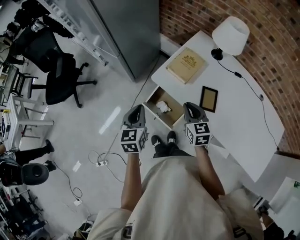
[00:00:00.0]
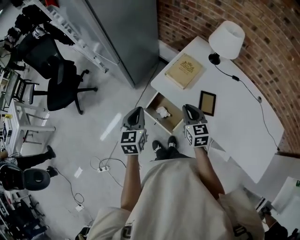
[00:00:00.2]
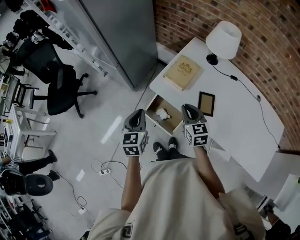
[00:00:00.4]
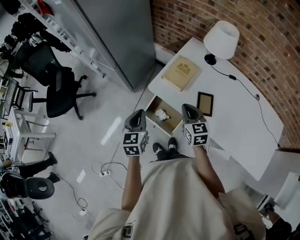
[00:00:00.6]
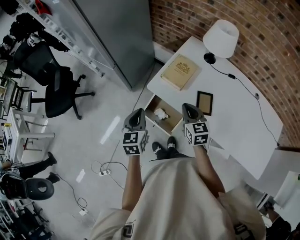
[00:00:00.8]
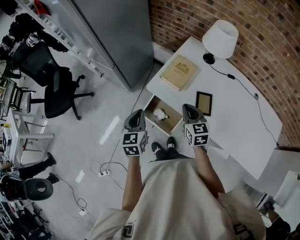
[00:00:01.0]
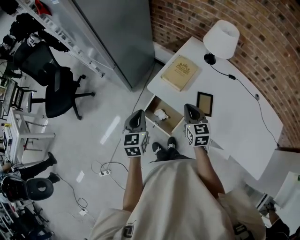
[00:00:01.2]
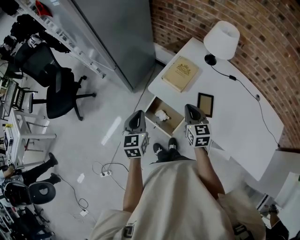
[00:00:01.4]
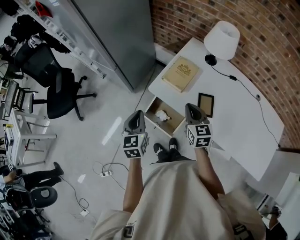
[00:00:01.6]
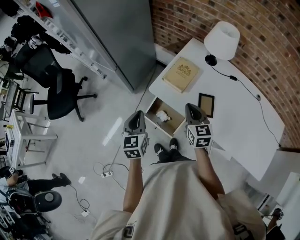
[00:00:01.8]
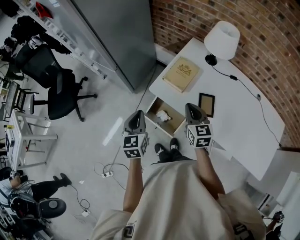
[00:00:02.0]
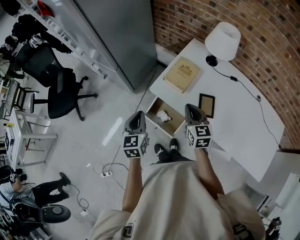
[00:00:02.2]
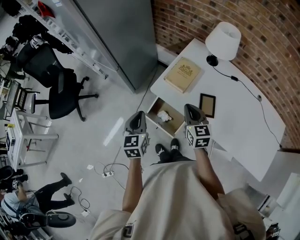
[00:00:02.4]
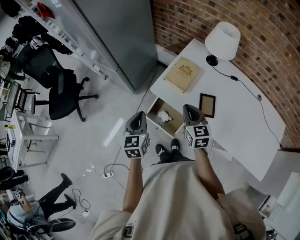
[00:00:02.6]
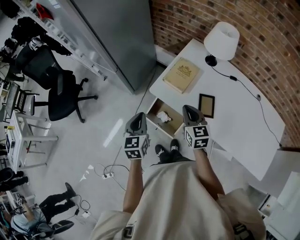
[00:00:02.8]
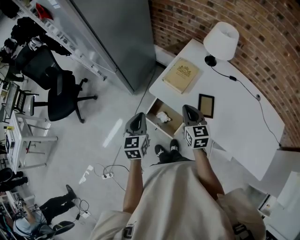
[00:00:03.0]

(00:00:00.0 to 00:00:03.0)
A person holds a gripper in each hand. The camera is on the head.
00:00:00.0 - 00:00:01.6: The right gripper moves approximately 5 cm.
00:00:01.6 - 00:00:03.0: There are only small adjustments of the grippers.

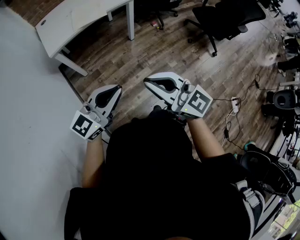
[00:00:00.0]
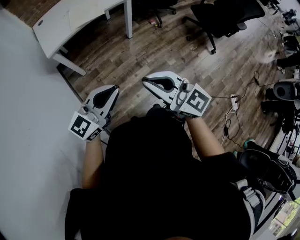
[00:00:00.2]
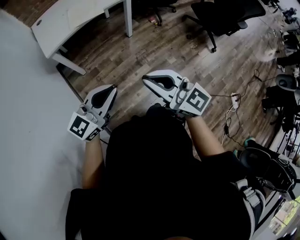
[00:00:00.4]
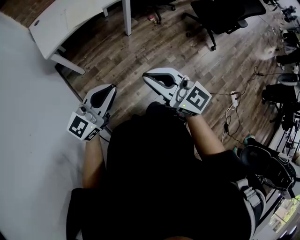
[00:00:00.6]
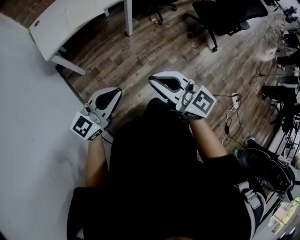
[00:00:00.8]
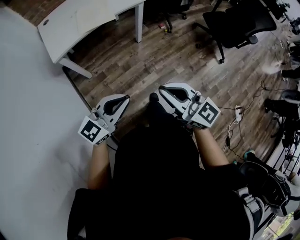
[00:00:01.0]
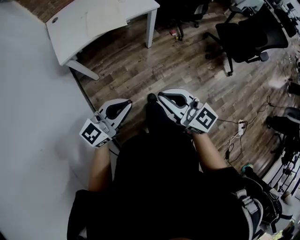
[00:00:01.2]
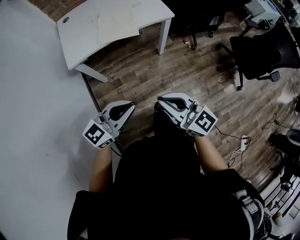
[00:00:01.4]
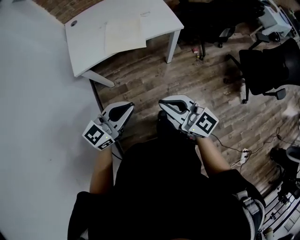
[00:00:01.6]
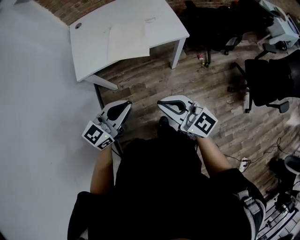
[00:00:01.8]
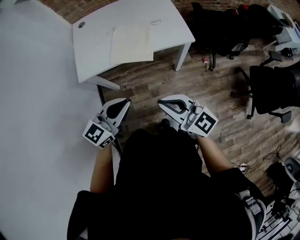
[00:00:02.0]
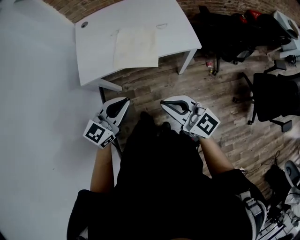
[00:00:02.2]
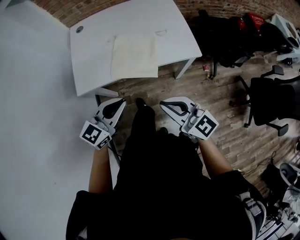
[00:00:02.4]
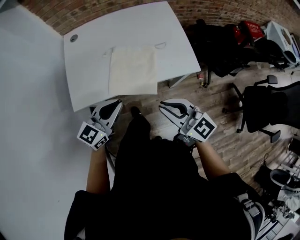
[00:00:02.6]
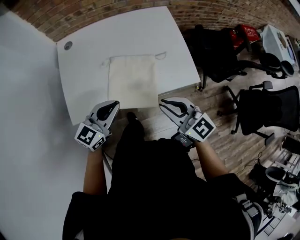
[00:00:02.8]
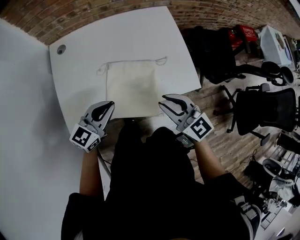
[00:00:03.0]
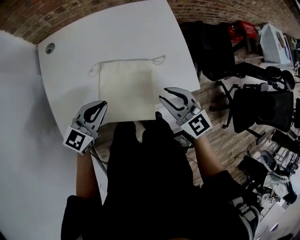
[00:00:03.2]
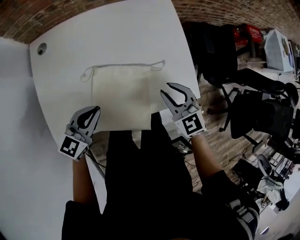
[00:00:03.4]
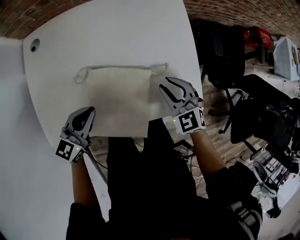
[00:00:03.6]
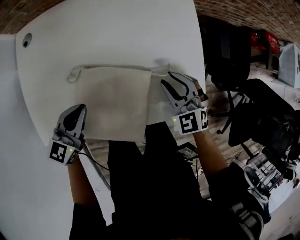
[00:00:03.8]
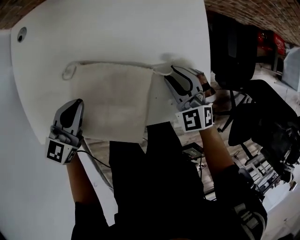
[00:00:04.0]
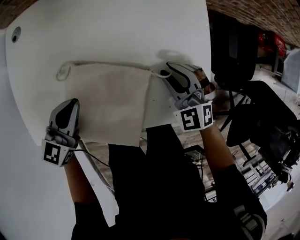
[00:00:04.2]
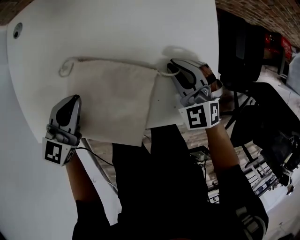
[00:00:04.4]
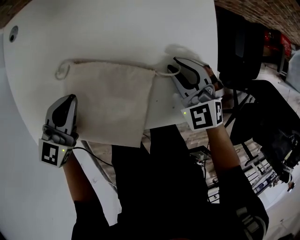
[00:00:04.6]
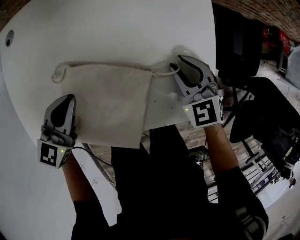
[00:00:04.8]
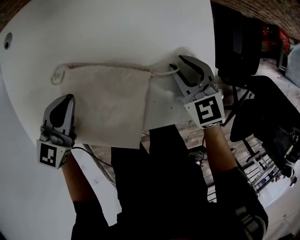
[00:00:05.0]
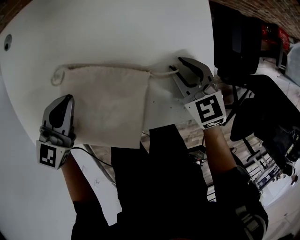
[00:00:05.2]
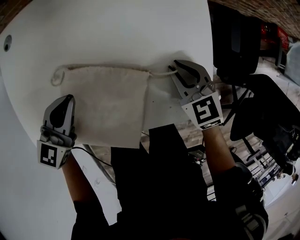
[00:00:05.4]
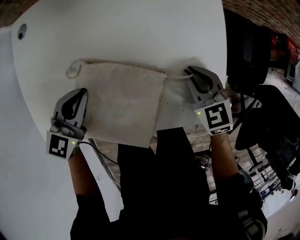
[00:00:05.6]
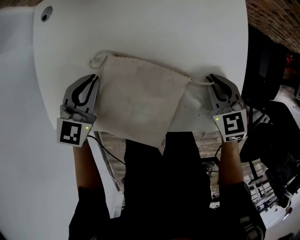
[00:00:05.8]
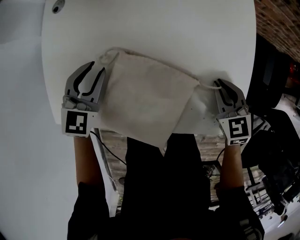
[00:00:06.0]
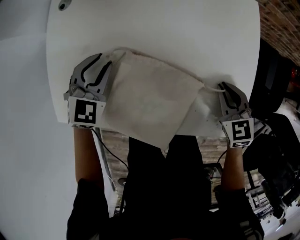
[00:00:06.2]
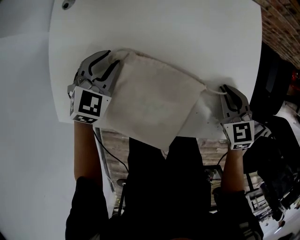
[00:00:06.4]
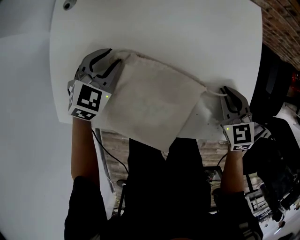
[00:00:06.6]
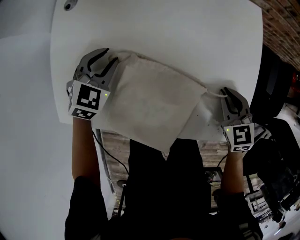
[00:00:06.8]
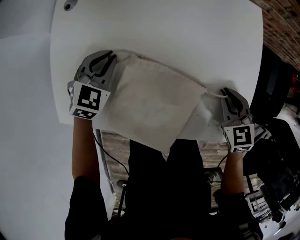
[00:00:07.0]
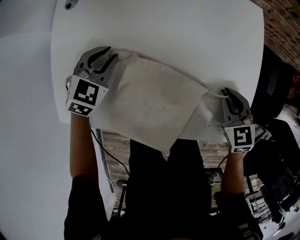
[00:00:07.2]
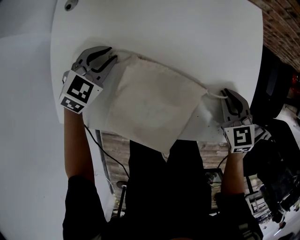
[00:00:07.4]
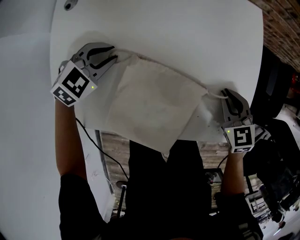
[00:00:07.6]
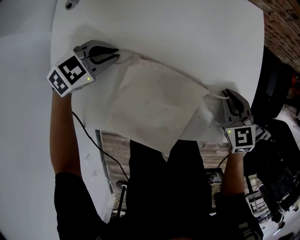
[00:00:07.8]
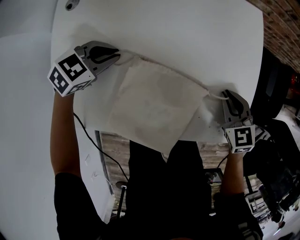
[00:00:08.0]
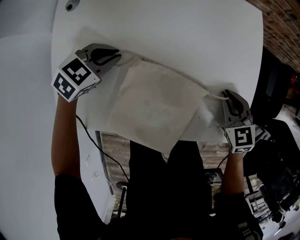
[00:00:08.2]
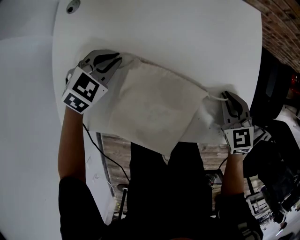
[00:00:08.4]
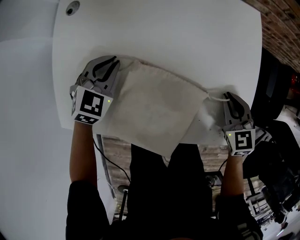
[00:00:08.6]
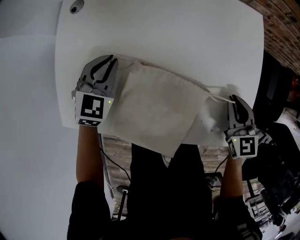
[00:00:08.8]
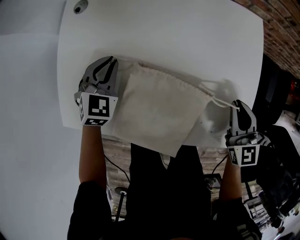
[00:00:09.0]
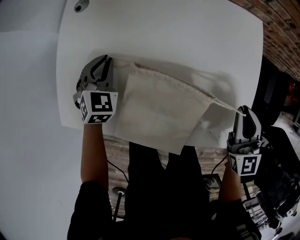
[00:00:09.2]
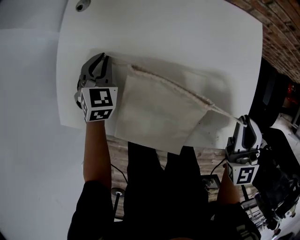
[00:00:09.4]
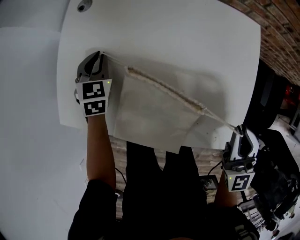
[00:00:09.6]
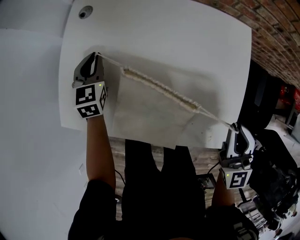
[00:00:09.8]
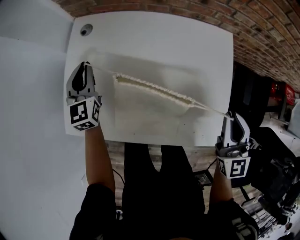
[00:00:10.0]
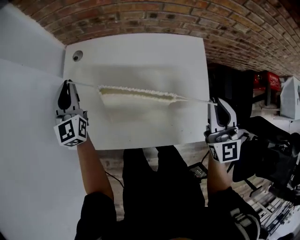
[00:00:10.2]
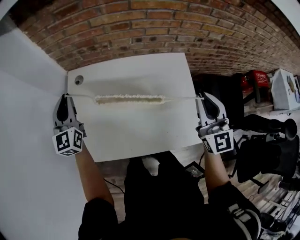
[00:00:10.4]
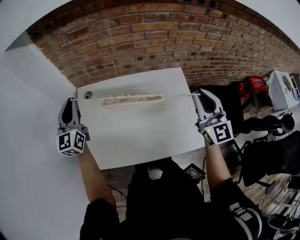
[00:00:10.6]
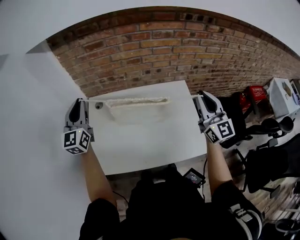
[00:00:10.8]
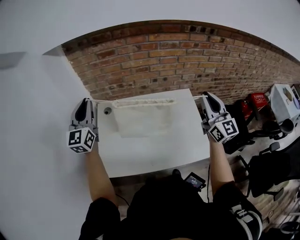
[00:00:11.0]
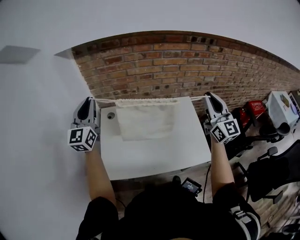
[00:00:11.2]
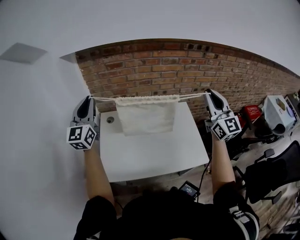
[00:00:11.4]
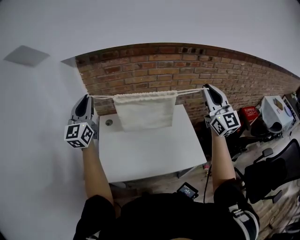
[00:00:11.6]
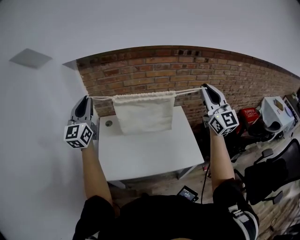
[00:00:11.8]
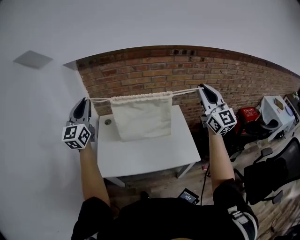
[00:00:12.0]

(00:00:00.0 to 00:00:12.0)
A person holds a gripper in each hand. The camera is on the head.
00:00:00.0 - 00:00:01.6: Both grippers move forward, about 30 cm.
00:00:01.6 - 00:00:03.0: The pair of grippers is taken forward, approximately 40 cm. The right gripper swivels roughly 20 degrees.
00:00:03.0 - 00:00:04.4: The right gripper travels forward and downward by approximately 30 cm, and turns by about 40 degrees. Meanwhile the left gripper heads downward and forward, covering some 20 cm, and rotates roughly 20 degrees.
00:00:04.4 - 00:00:06.0: The left gripper travels to the left by some 5 cm, rotates some 30 degrees, and opens its fingers; the right gripper swivels roughly 30 degrees.
00:00:06.0 - 00:00:07.6: The left gripper shifts by approximately 5 cm, and turns by roughly 30 degrees.
00:00:07.6 - 00:00:09.0: The right gripper is displaced upward by roughly 5 cm, and swivels some 20 degrees. The left gripper rotates approximately 40 degrees.
00:00:09.0 - 00:00:10.4: Both grippers move upward, some 30 cm. The left gripper tips its fingers upward by about 40 degrees. The right gripper swivels approximately 30 degrees.
00:00:10.4 - 00:00:12.0: The grippers both shift upward and backward by approximately 30 cm. The right gripper swivels about 20 degrees. The left gripper rotates some 20 degrees.

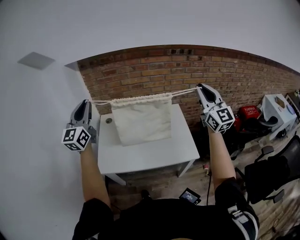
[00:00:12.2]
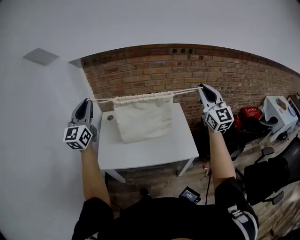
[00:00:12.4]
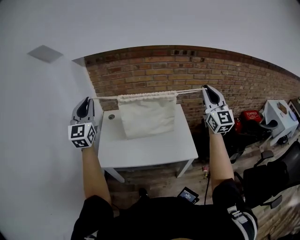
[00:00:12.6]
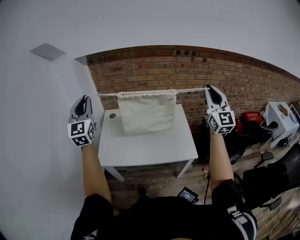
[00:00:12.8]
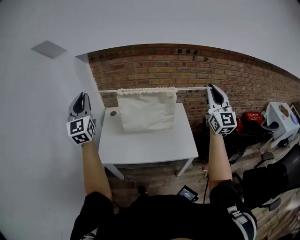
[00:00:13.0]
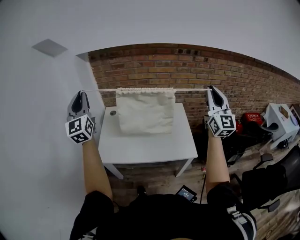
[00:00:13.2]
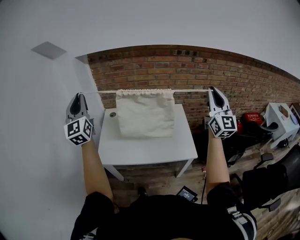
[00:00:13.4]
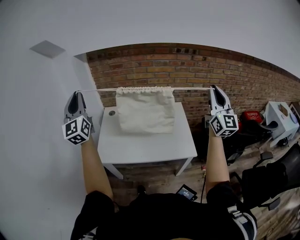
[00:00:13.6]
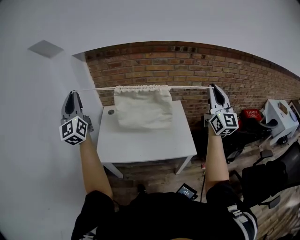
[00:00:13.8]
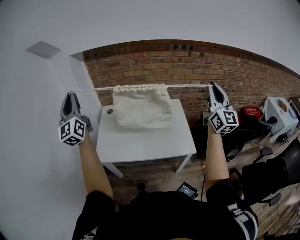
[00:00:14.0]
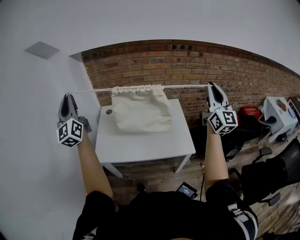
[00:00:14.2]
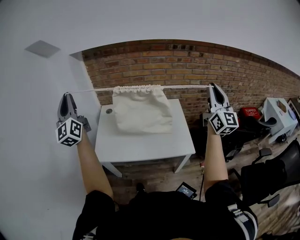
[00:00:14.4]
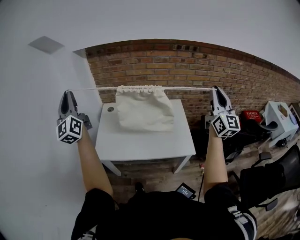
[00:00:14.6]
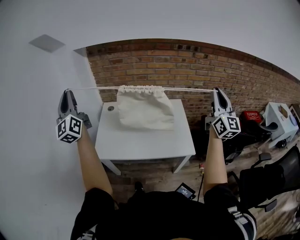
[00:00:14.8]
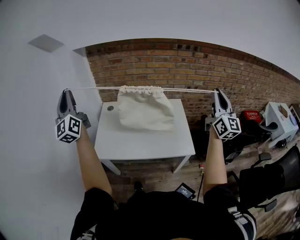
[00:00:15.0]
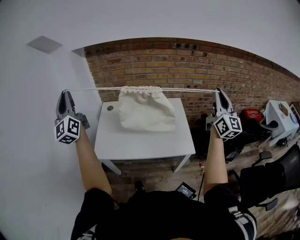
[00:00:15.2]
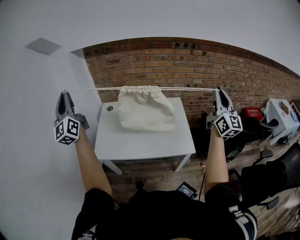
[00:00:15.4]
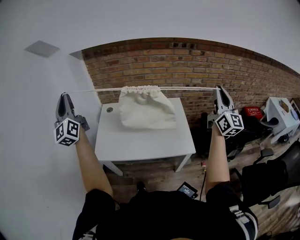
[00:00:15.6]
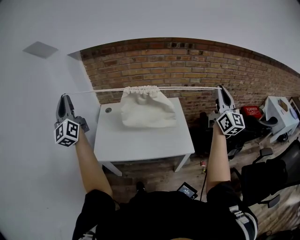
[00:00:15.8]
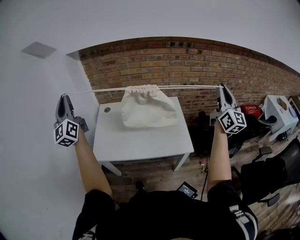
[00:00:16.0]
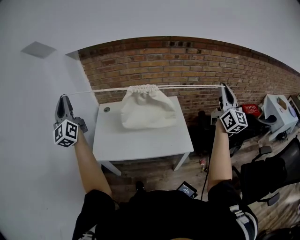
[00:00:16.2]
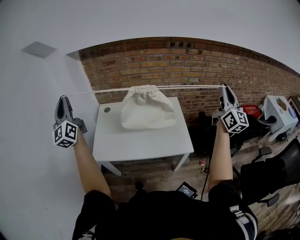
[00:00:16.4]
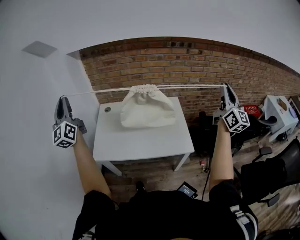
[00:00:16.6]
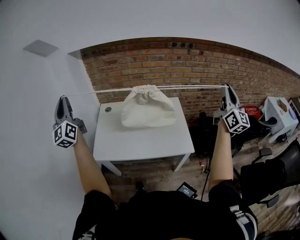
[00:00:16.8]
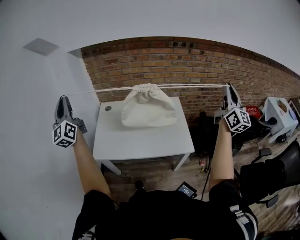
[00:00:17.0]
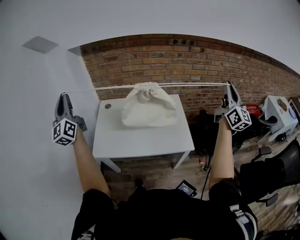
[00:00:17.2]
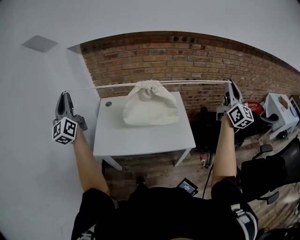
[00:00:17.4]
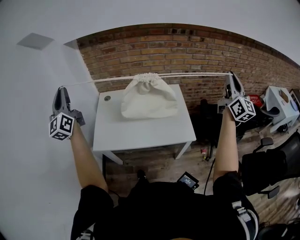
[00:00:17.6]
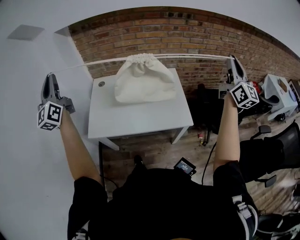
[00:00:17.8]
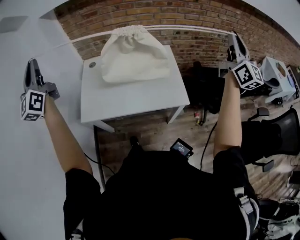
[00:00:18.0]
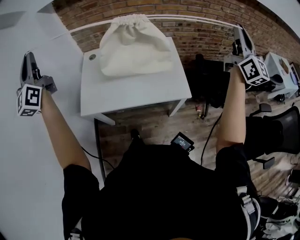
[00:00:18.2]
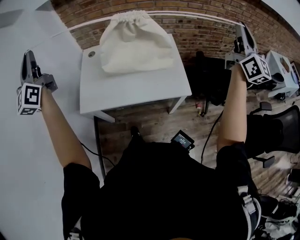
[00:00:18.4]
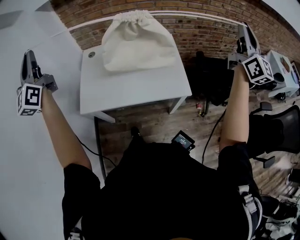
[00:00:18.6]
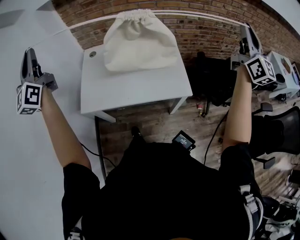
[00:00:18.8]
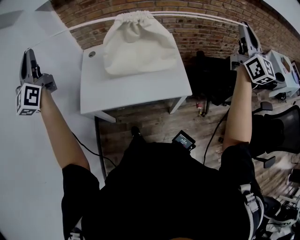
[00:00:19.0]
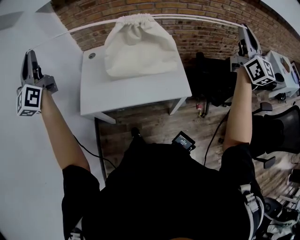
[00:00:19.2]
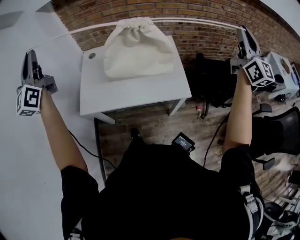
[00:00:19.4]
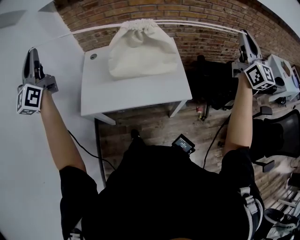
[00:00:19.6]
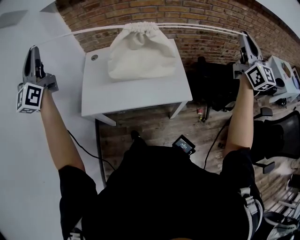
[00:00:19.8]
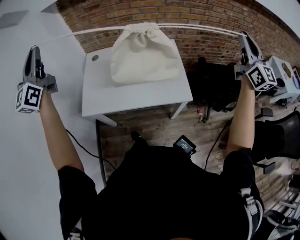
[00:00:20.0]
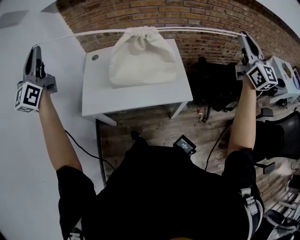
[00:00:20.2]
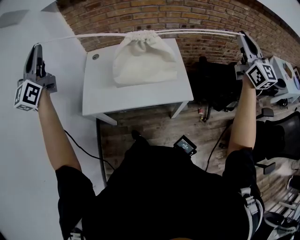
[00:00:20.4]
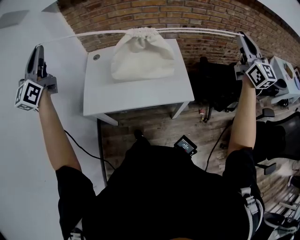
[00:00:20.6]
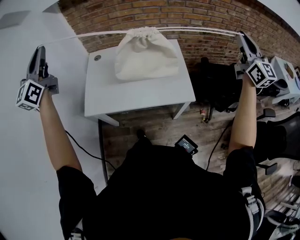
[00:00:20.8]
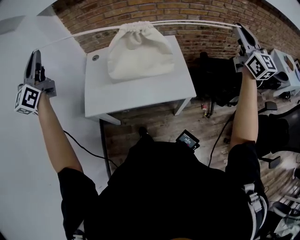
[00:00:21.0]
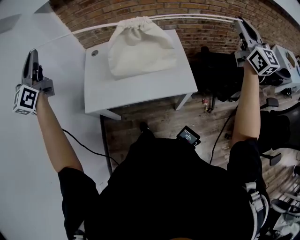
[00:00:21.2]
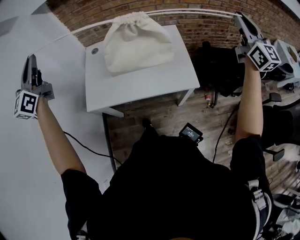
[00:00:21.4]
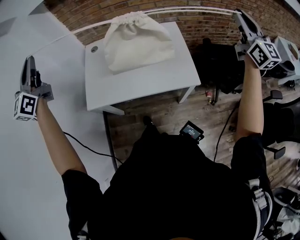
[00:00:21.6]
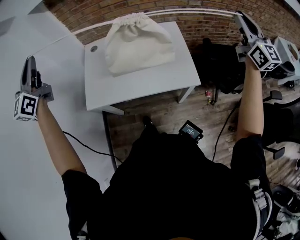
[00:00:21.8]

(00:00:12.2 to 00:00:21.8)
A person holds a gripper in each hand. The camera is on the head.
00:00:12.2 - 00:00:13.8: The right gripper shifts approximately 5 cm backward, while the left gripper travels backward and to the left by about 10 cm, and changes its angle by about 20 degrees.
00:00:13.8 - 00:00:15.4: The right gripper ends up approximately 5 cm from where it was.
00:00:15.4 - 00:00:17.0: The right gripper travels to the right by some 5 cm.
00:00:17.0 - 00:00:18.6: The grippers stay close to where they were, moving slightly.
00:00:18.6 - 00:00:21.8: The grippers move only a little.
